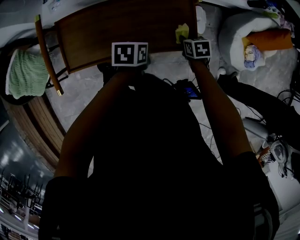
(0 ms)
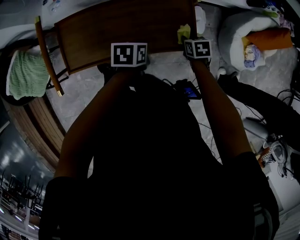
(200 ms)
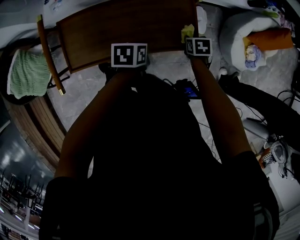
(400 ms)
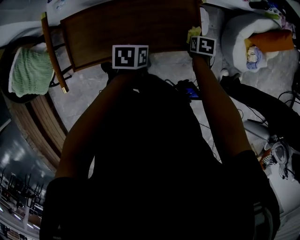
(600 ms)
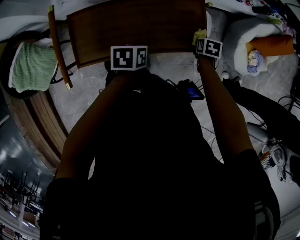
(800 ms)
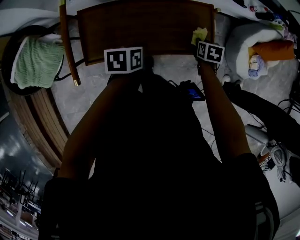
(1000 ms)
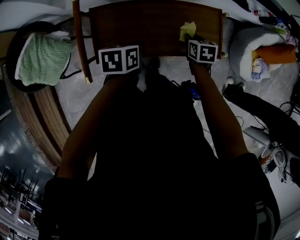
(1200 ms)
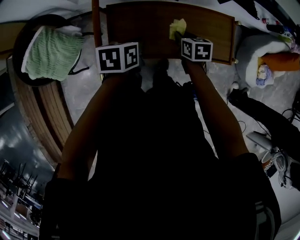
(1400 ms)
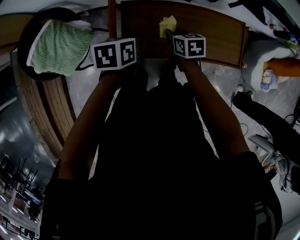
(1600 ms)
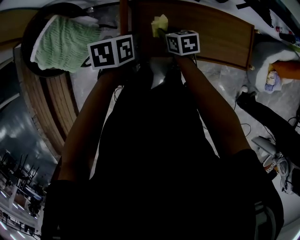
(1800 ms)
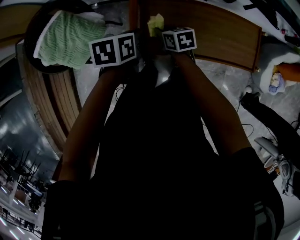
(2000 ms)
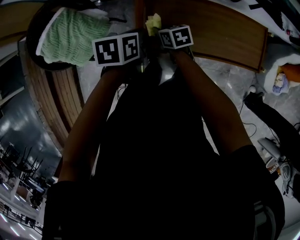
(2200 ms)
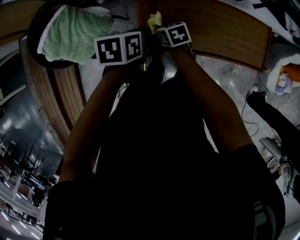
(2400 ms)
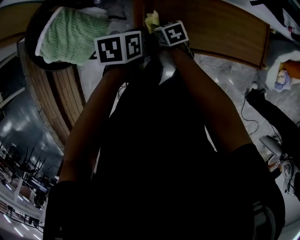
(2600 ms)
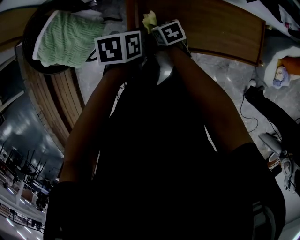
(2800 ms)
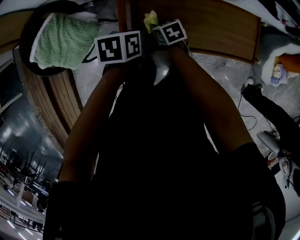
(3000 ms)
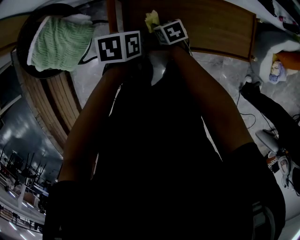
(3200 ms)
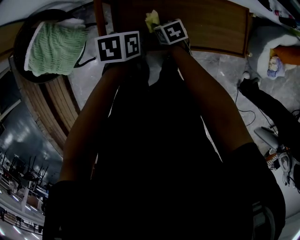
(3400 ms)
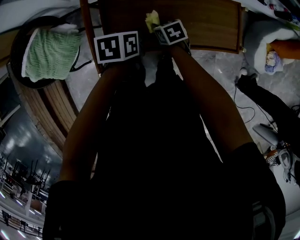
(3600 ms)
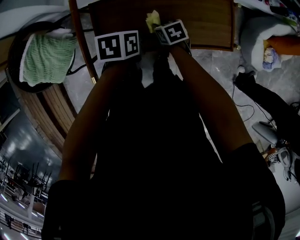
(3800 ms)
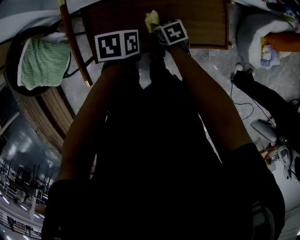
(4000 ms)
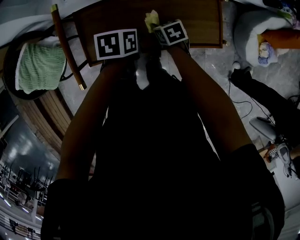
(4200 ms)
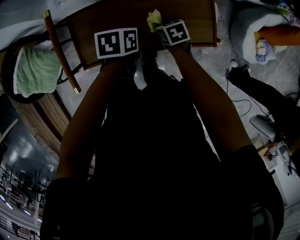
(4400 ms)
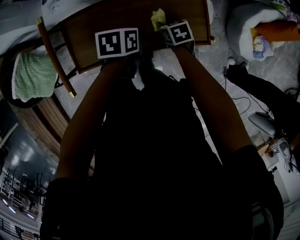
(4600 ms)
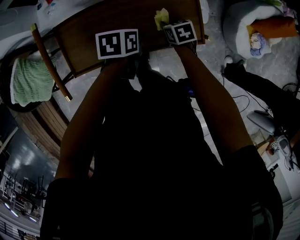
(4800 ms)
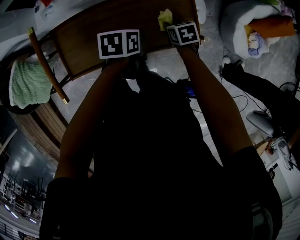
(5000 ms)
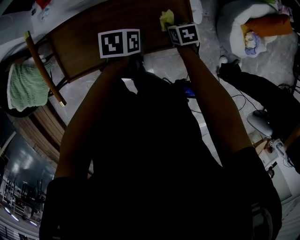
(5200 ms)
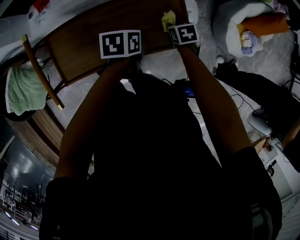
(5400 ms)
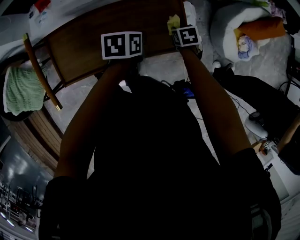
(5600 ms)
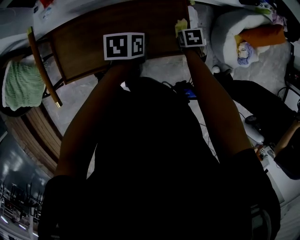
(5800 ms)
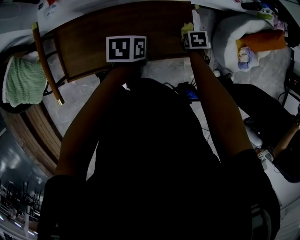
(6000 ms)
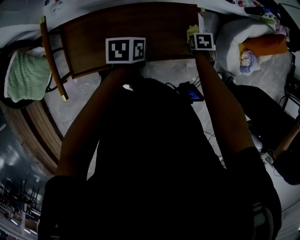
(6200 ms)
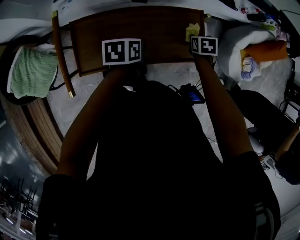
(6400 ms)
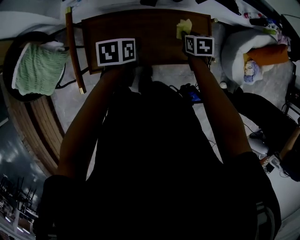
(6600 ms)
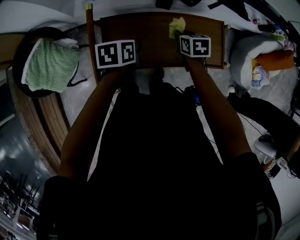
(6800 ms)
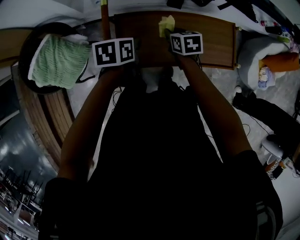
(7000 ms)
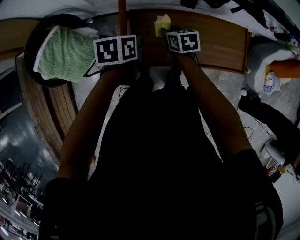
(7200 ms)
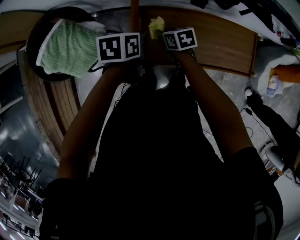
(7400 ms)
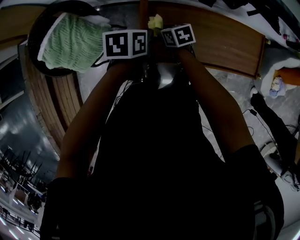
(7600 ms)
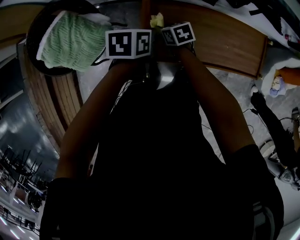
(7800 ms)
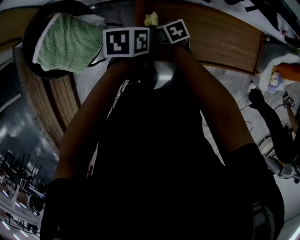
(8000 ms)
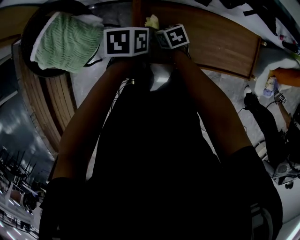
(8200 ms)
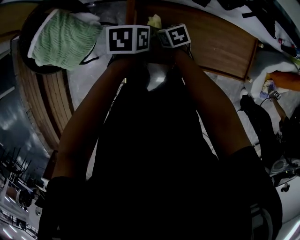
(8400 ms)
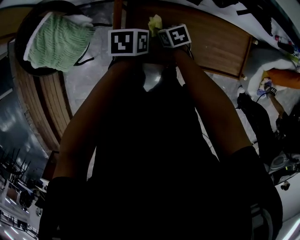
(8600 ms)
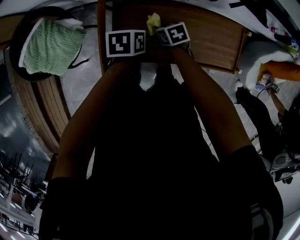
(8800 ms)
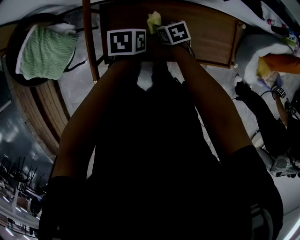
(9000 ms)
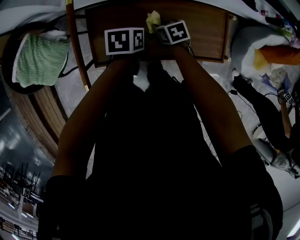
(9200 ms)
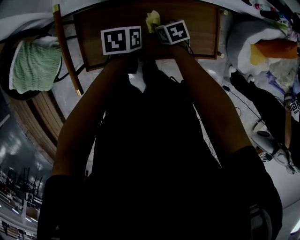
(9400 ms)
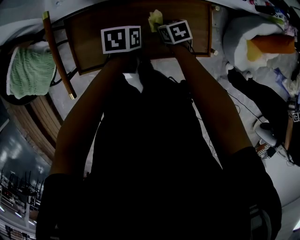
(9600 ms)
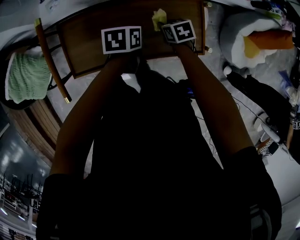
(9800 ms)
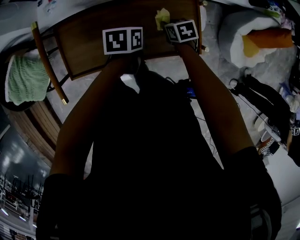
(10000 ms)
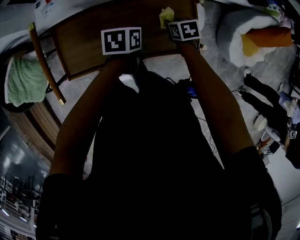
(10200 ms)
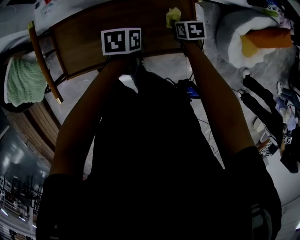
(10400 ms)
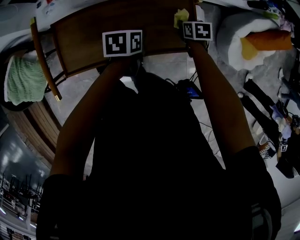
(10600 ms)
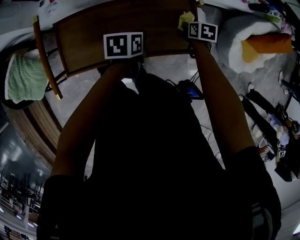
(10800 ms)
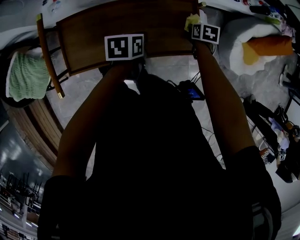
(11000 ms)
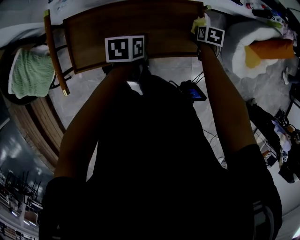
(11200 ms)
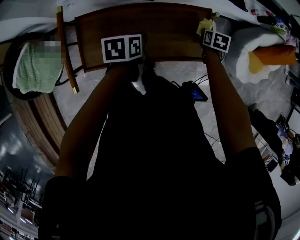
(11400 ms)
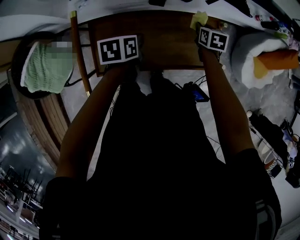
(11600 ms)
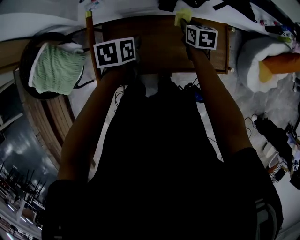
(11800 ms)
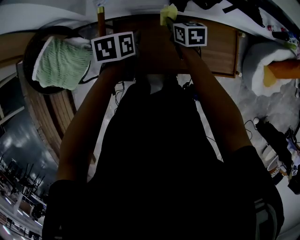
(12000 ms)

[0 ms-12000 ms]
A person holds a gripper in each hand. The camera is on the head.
0 ms to 1600 ms: The left gripper changes place by some 30 cm. The right gripper ends up approximately 35 cm from where it was.
1600 ms to 3000 ms: The right gripper shifts some 15 cm to the left and downward; the left gripper moves roughly 10 cm to the left and comes back.
3000 ms to 4400 ms: The two grippers go approximately 25 cm to the right.
4400 ms to 6000 ms: The left gripper changes place by some 10 cm. The right gripper shifts by approximately 25 cm, and turns by about 30 degrees.
6000 ms to 7600 ms: The left gripper changes place by approximately 40 cm. The right gripper moves some 10 cm upward and comes back, and swivels roughly 40 degrees.
7600 ms to 9000 ms: The grippers both shift to the right by roughly 20 cm.
9000 ms to 10400 ms: The grippers both shift to the right by some 25 cm.
10400 ms to 12000 ms: The left gripper moves approximately 30 cm. Meanwhile the right gripper moves approximately 30 cm, and swivels about 20 degrees.

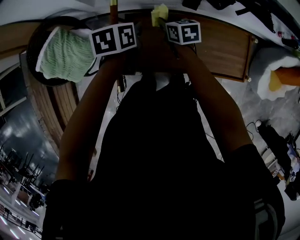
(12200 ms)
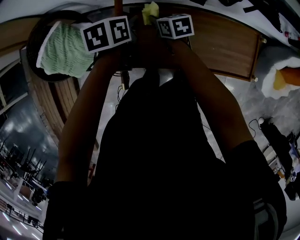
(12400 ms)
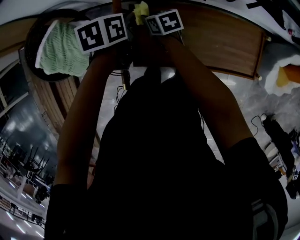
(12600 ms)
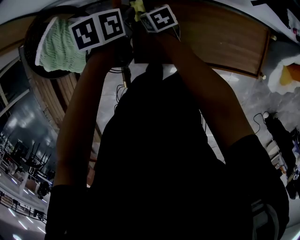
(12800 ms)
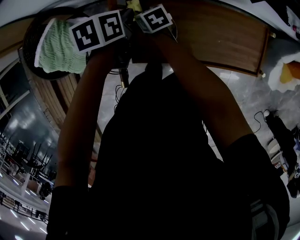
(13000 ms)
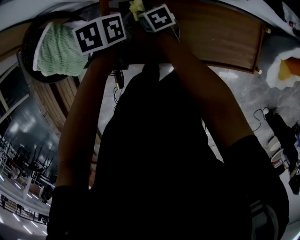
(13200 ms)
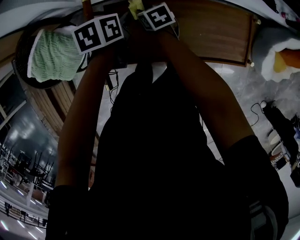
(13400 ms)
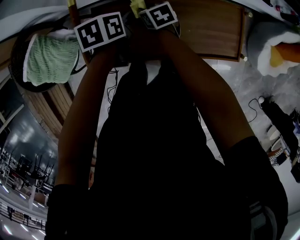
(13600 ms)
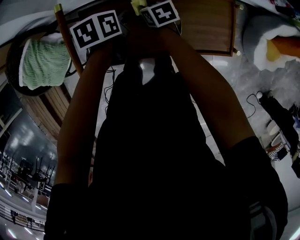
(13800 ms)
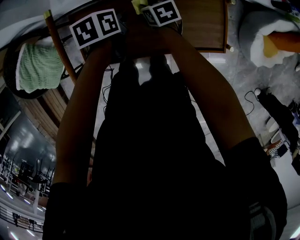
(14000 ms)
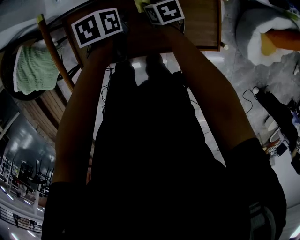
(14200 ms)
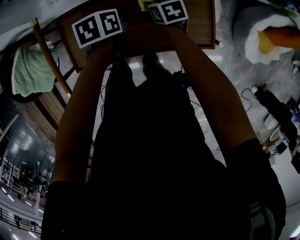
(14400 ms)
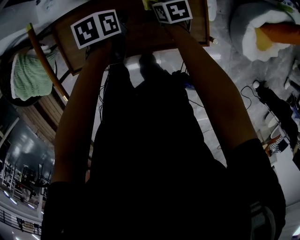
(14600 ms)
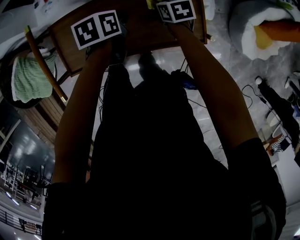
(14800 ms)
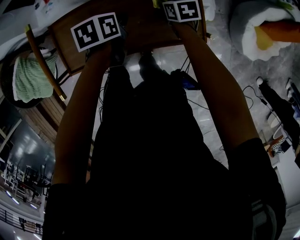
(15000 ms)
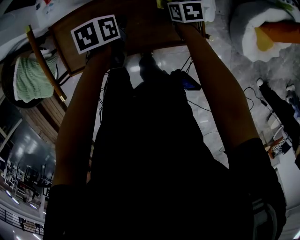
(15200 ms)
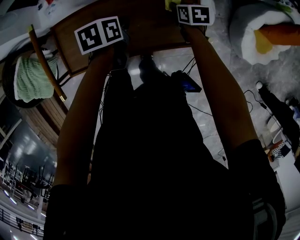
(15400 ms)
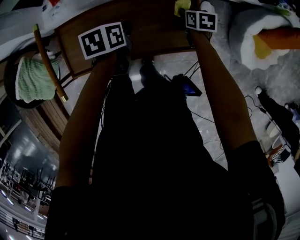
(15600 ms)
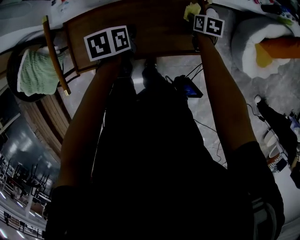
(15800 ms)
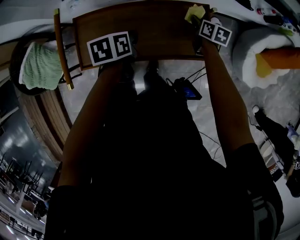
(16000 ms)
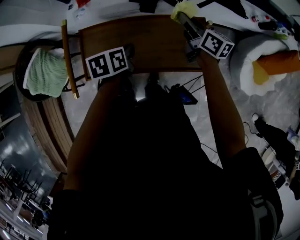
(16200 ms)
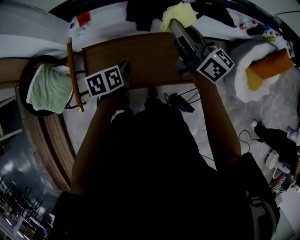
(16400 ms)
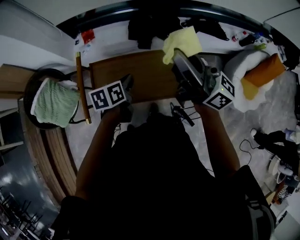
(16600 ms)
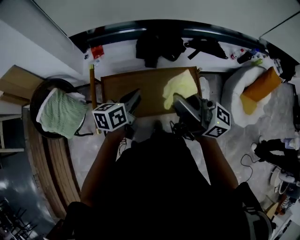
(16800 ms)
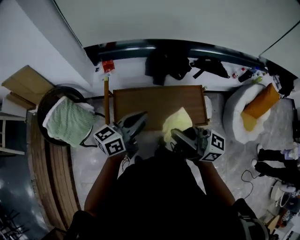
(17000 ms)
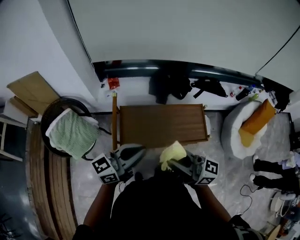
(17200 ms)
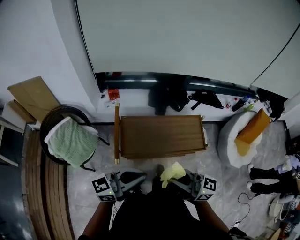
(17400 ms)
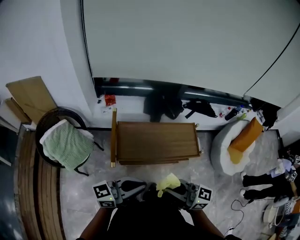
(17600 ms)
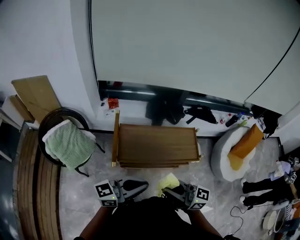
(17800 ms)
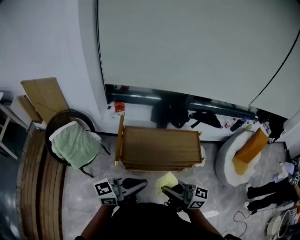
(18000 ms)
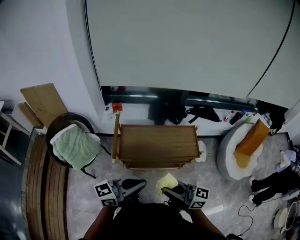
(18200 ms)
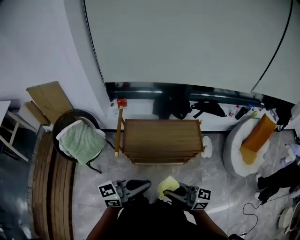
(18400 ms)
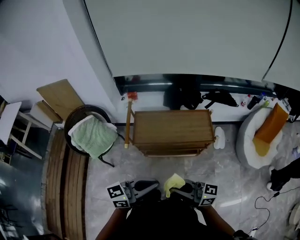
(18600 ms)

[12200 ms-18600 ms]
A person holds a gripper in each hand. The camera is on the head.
12200 ms to 13800 ms: Both grippers travel together to the right and downward, about 10 cm.
13800 ms to 15400 ms: The left gripper goes about 15 cm to the right. Meanwhile the right gripper travels to the right by roughly 30 cm.
15400 ms to 17000 ms: The left gripper heads upward, backward and to the left, covering approximately 35 cm, and angles its fingers upward, by roughly 60 degrees; the right gripper moves upward, backward and to the left, approximately 60 cm, and tips its fingers upward by roughly 80 degrees.
17000 ms to 18600 ms: The left gripper ends up some 30 cm from where it was; the right gripper moves approximately 25 cm.

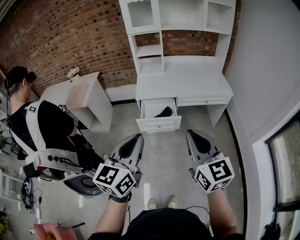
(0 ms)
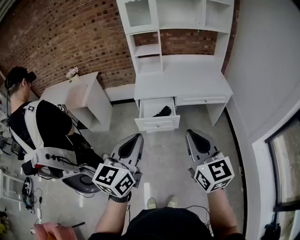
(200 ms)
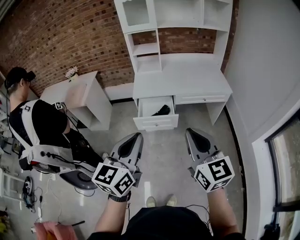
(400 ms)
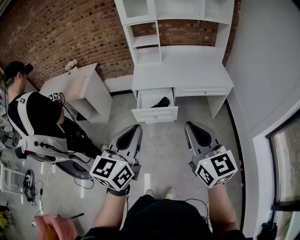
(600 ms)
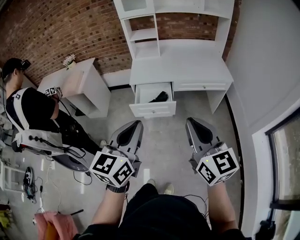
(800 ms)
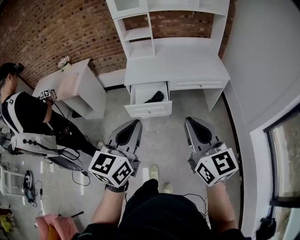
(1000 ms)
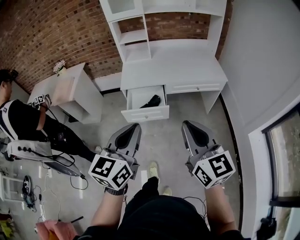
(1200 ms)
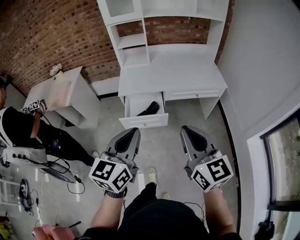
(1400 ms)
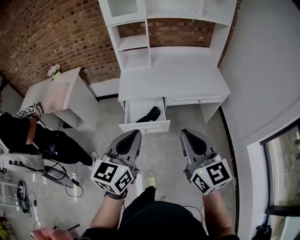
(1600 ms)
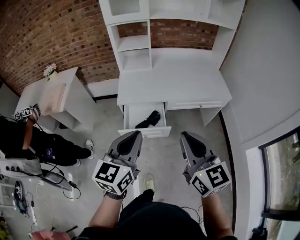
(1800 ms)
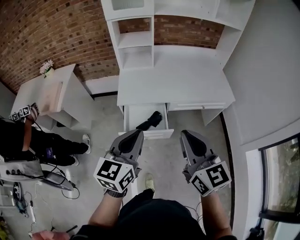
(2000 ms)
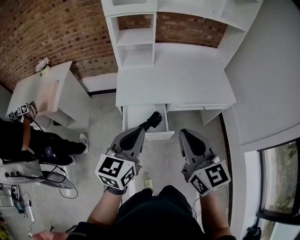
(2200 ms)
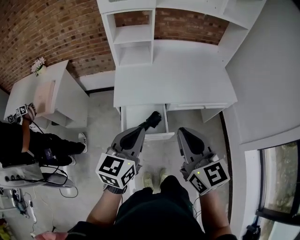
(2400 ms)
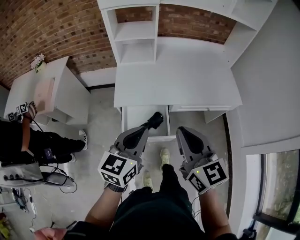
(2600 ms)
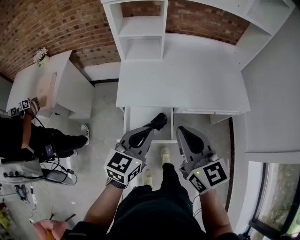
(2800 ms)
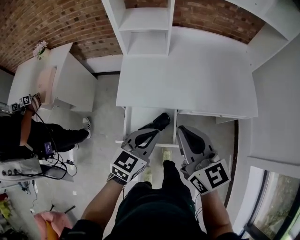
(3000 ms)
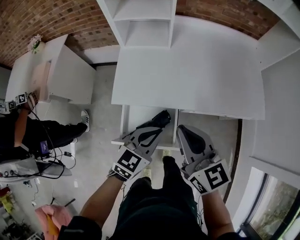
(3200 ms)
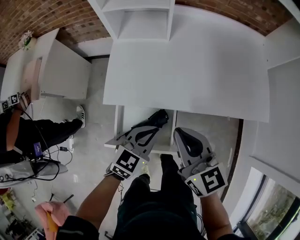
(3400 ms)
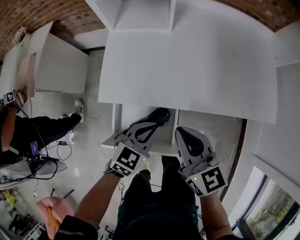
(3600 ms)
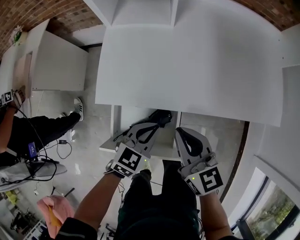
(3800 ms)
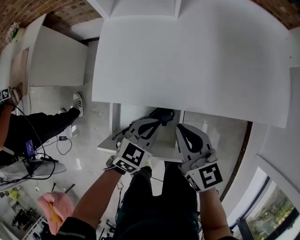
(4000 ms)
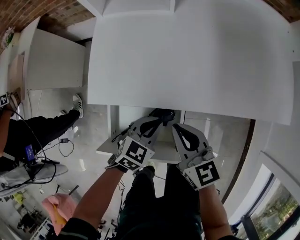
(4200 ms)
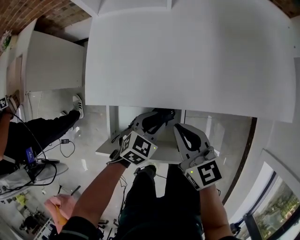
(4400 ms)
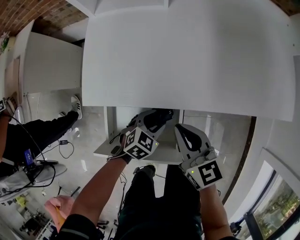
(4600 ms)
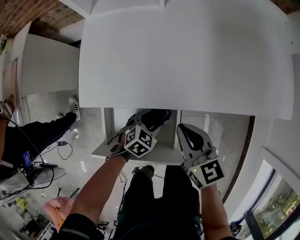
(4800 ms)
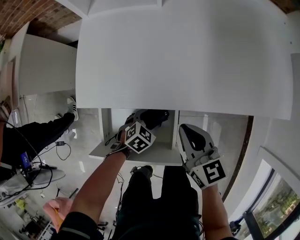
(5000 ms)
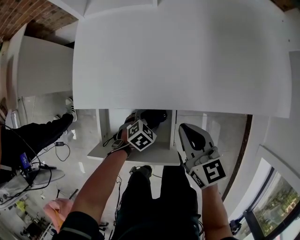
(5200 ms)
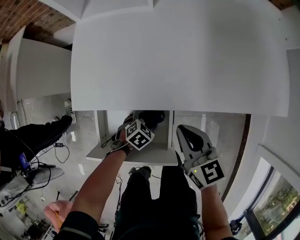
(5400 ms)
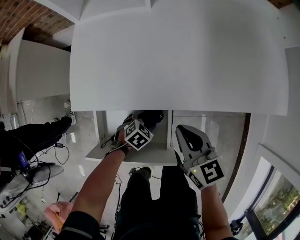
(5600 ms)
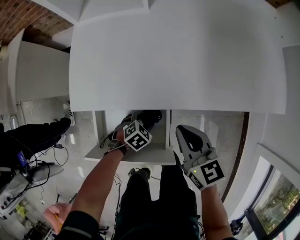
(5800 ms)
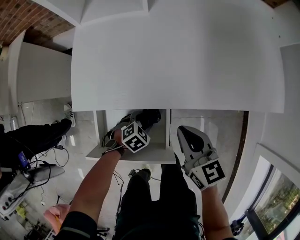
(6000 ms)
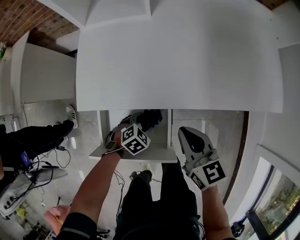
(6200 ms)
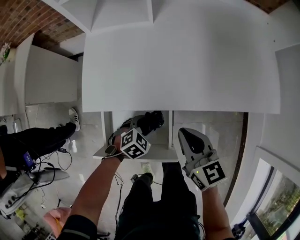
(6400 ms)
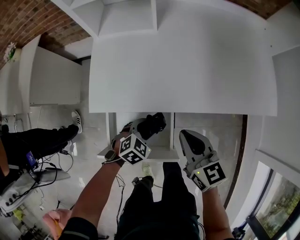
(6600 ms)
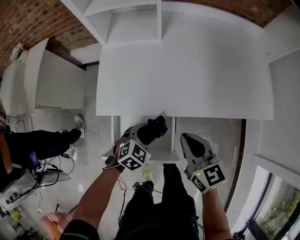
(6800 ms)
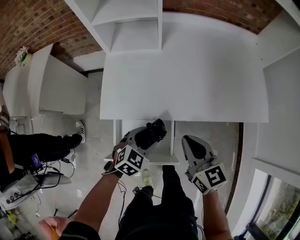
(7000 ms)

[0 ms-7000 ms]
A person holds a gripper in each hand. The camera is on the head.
0 ms to 1400 ms: The two grippers go approximately 10 cm forward and to the right.
1400 ms to 2800 ms: The left gripper travels forward and downward by roughly 35 cm; the right gripper is displaced forward by approximately 30 cm.
2800 ms to 4200 ms: The left gripper heads downward, covering some 35 cm, and swivels about 30 degrees, while the right gripper goes some 35 cm downward and forward.
4200 ms to 5600 ms: The left gripper is displaced downward by roughly 15 cm, rotates approximately 30 degrees, and opens. Meanwhile the right gripper travels to the right by about 5 cm.
5600 ms to 7000 ms: The right gripper is displaced upward by about 15 cm. The left gripper goes approximately 25 cm upward, and rotates roughly 30 degrees.
